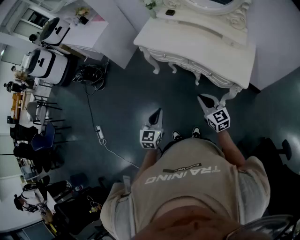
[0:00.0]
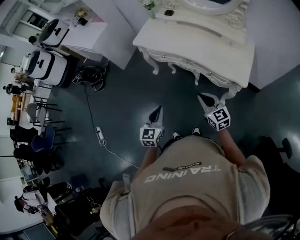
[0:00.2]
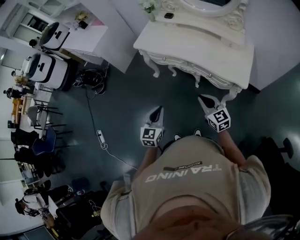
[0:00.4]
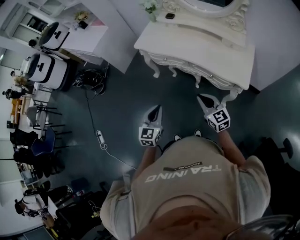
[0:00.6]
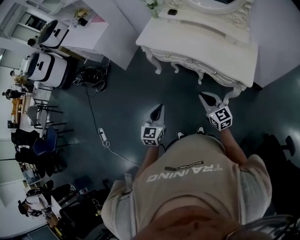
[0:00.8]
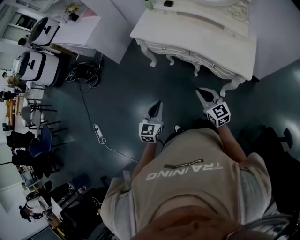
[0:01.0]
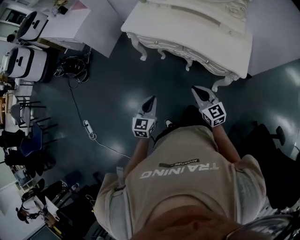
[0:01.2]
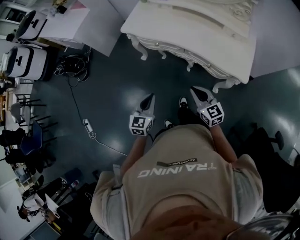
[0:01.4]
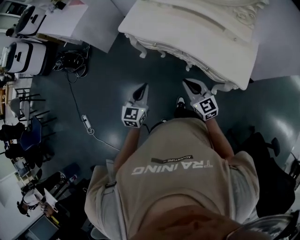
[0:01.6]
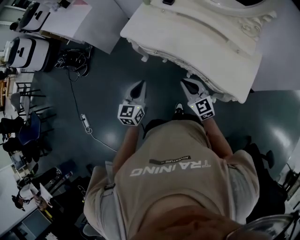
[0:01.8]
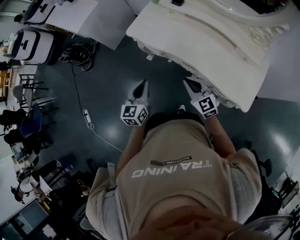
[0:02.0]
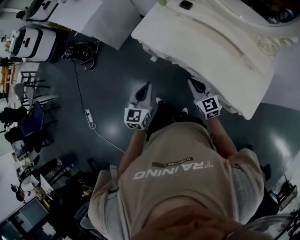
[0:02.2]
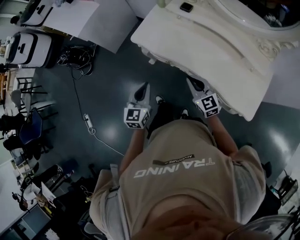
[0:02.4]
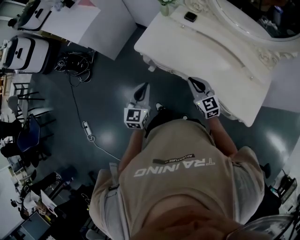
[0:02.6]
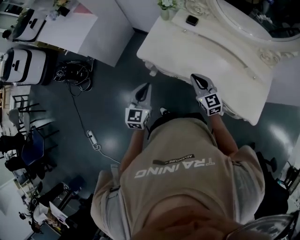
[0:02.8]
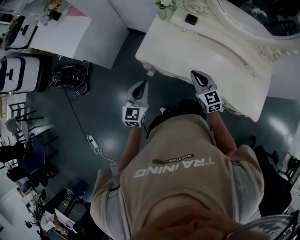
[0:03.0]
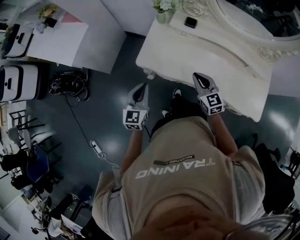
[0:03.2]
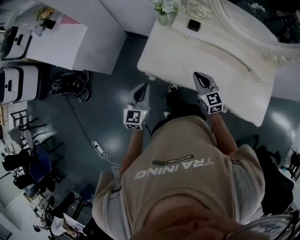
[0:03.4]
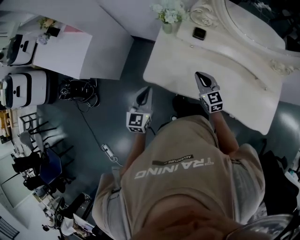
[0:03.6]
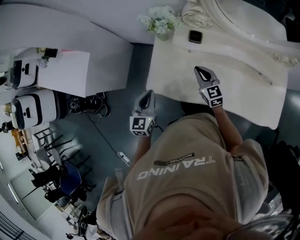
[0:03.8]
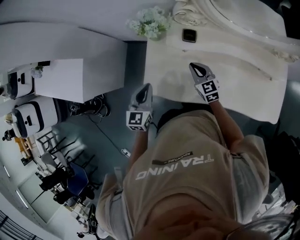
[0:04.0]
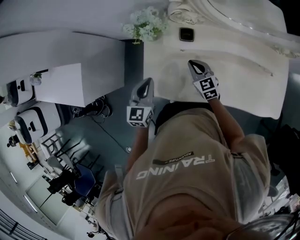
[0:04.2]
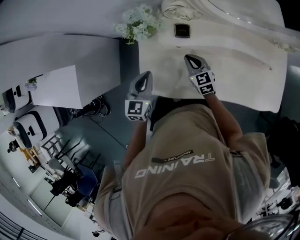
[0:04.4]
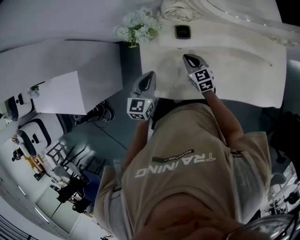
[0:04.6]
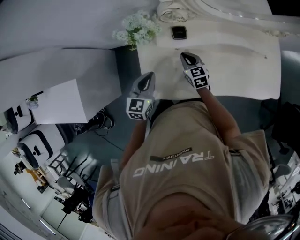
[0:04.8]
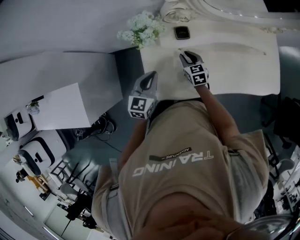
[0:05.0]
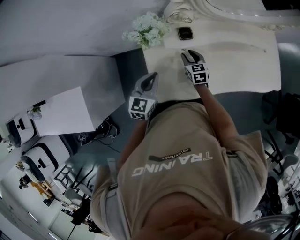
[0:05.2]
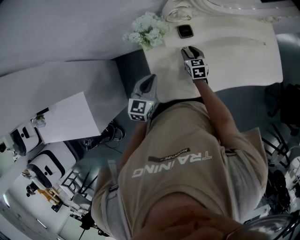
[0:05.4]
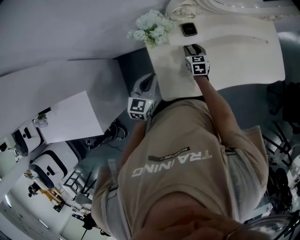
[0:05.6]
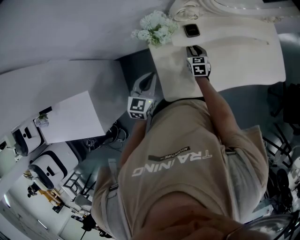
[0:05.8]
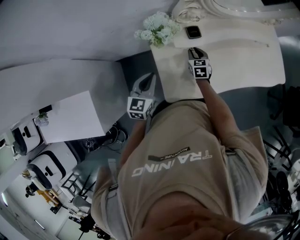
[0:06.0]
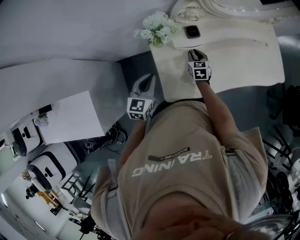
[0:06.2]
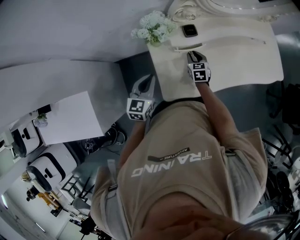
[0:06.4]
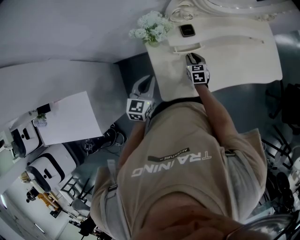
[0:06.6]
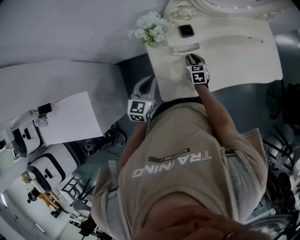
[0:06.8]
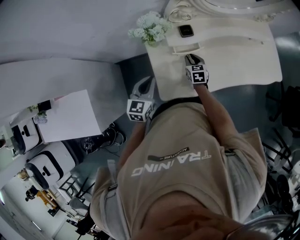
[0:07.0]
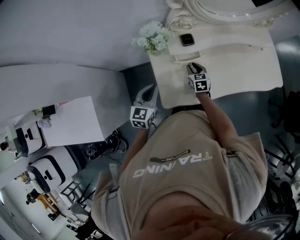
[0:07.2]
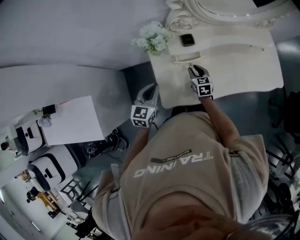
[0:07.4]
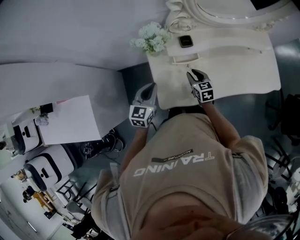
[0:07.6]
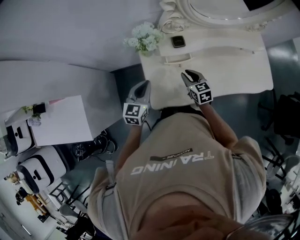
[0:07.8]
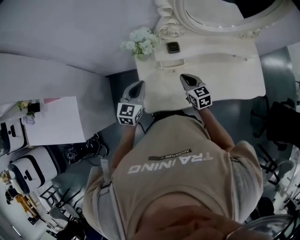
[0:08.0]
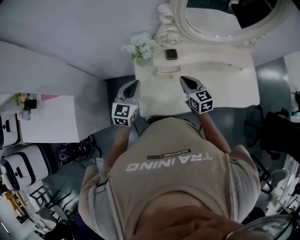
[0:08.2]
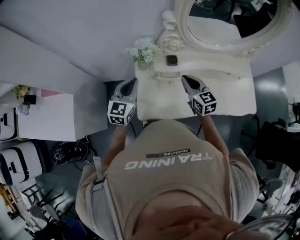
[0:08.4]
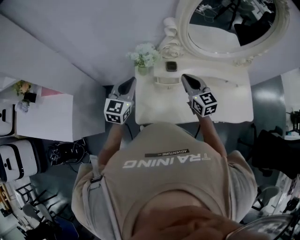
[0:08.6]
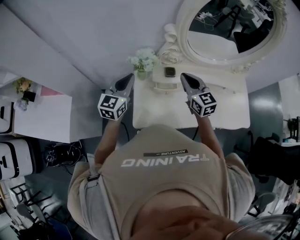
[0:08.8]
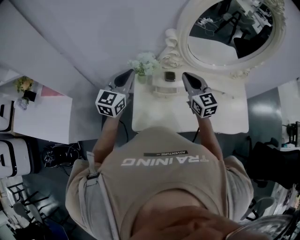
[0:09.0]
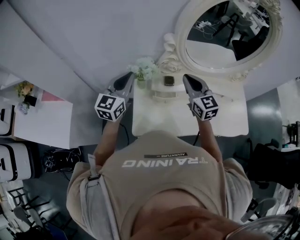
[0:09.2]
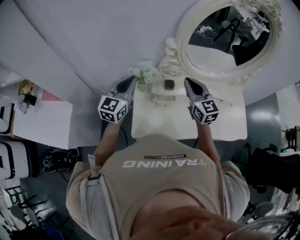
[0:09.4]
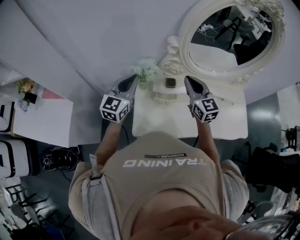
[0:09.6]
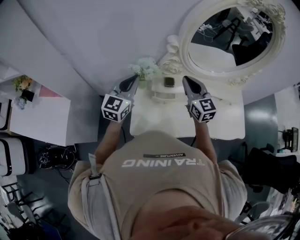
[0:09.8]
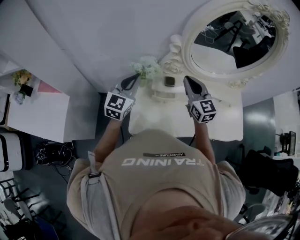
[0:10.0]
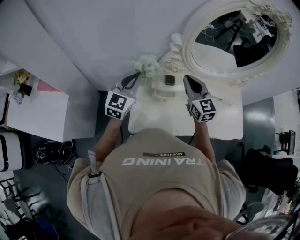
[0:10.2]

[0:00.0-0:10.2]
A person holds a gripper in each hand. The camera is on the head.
0:00.0 to 0:01.4: The two grippers go some 10 cm forward.
0:01.4 to 0:03.0: The two grippers travel together, forward, about 40 cm.
0:03.0 to 0:04.4: The left gripper shifts approximately 30 cm forward, and swivels approximately 20 degrees, while the right gripper heads forward and downward, covering about 30 cm, and rotates about 20 degrees.
0:04.4 to 0:05.8: The left gripper shifts by about 10 cm, and rotates some 20 degrees; the right gripper shifts by some 10 cm, changes its angle by approximately 40 degrees, and opens.
0:05.8 to 0:07.2: The right gripper moves backward, some 5 cm. Meanwhile the left gripper changes place by approximately 5 cm.
0:07.2 to 0:08.8: The right gripper shifts about 30 cm upward, swivels roughly 40 degrees, and closes up. Meanwhile the left gripper moves upward, some 15 cm.
0:08.8 to 0:10.2: There are only small adjustments of the grippers.

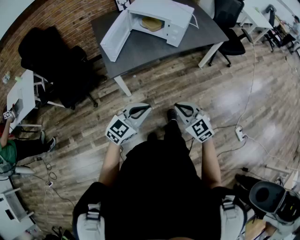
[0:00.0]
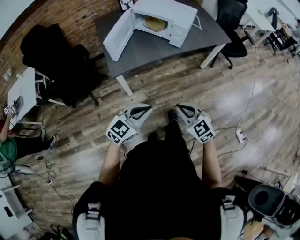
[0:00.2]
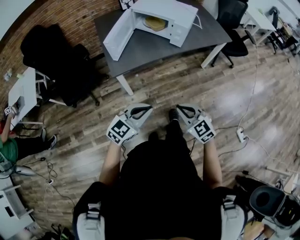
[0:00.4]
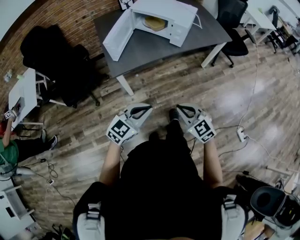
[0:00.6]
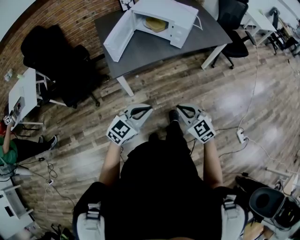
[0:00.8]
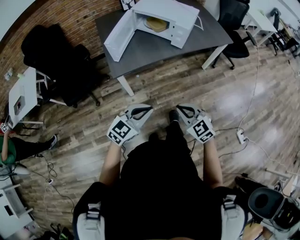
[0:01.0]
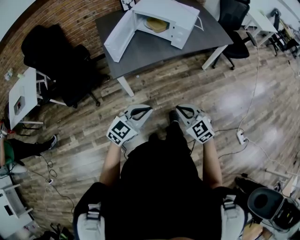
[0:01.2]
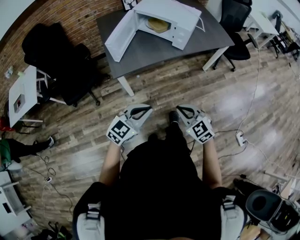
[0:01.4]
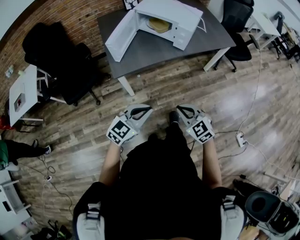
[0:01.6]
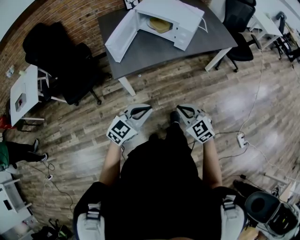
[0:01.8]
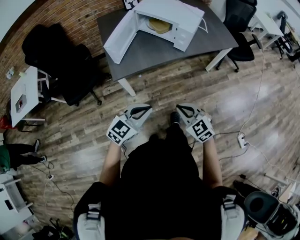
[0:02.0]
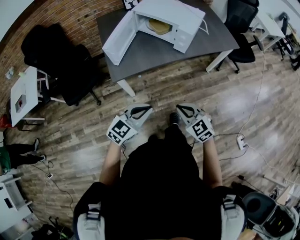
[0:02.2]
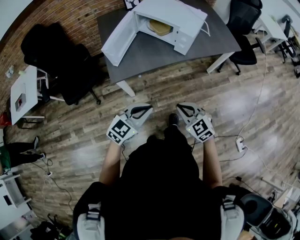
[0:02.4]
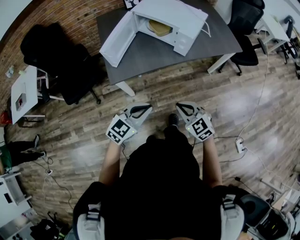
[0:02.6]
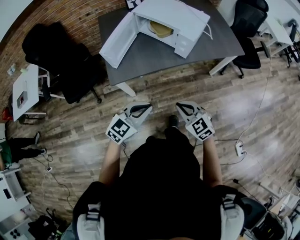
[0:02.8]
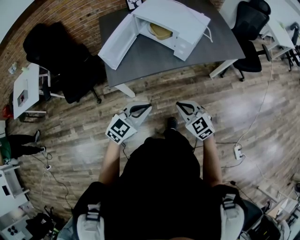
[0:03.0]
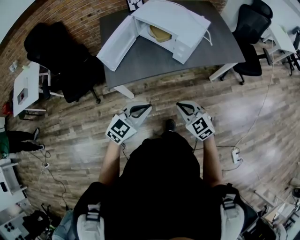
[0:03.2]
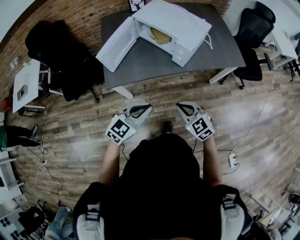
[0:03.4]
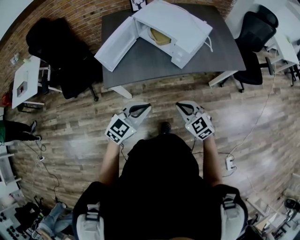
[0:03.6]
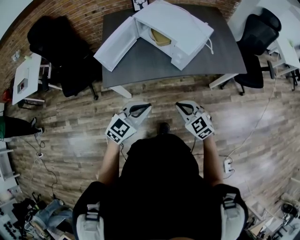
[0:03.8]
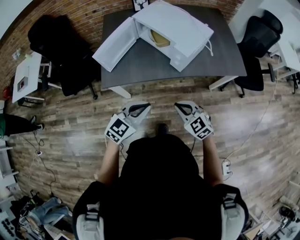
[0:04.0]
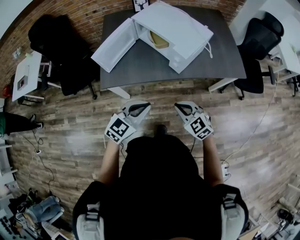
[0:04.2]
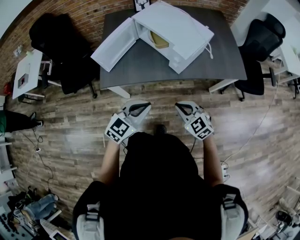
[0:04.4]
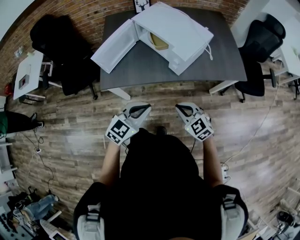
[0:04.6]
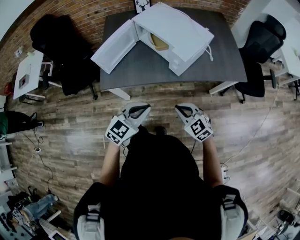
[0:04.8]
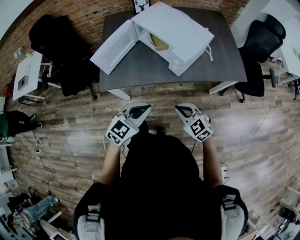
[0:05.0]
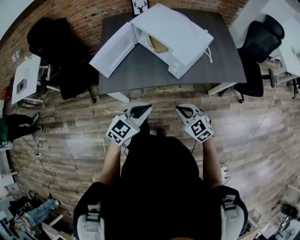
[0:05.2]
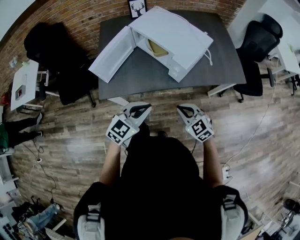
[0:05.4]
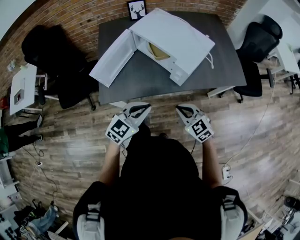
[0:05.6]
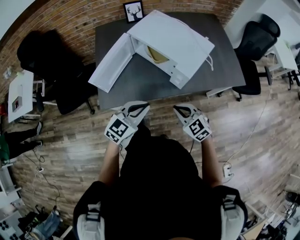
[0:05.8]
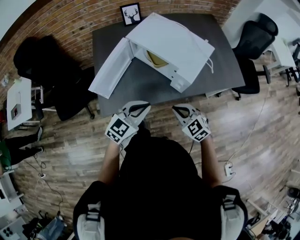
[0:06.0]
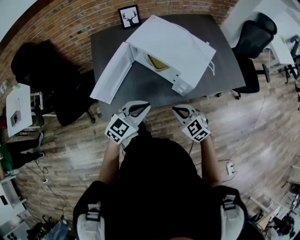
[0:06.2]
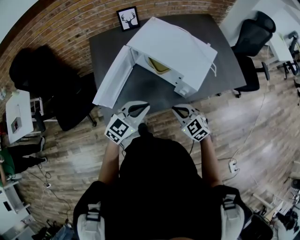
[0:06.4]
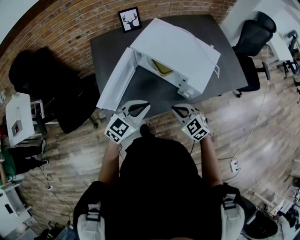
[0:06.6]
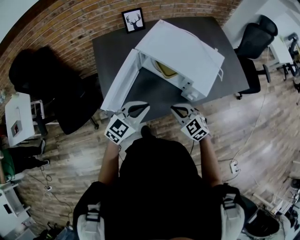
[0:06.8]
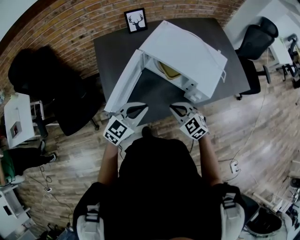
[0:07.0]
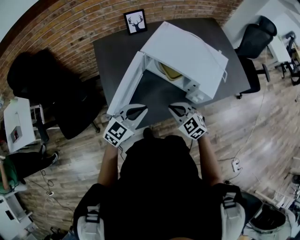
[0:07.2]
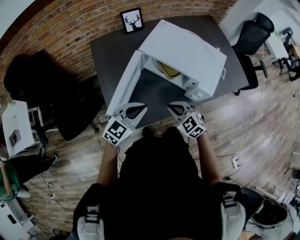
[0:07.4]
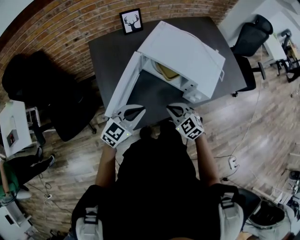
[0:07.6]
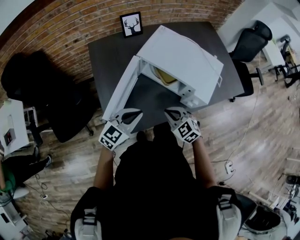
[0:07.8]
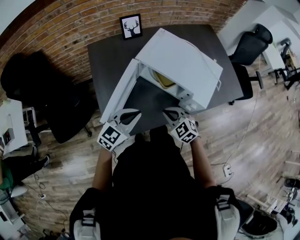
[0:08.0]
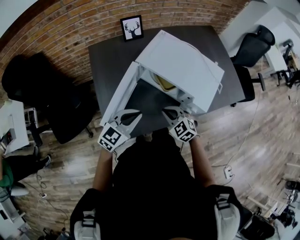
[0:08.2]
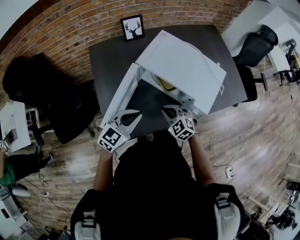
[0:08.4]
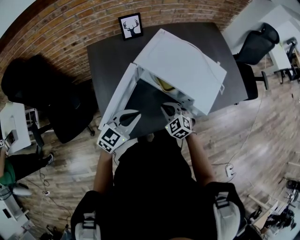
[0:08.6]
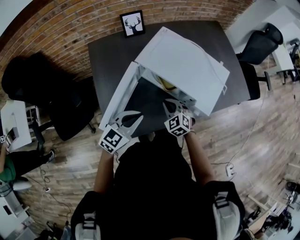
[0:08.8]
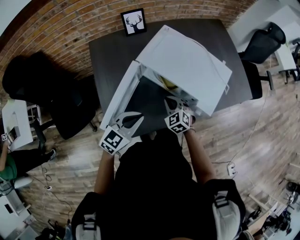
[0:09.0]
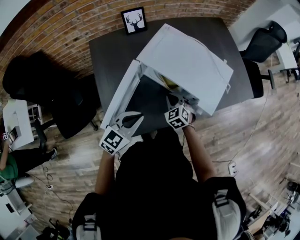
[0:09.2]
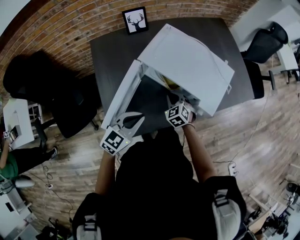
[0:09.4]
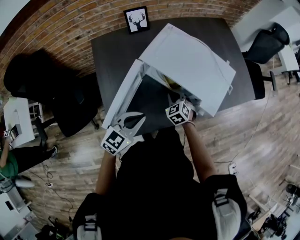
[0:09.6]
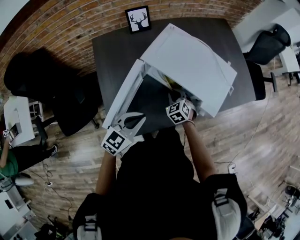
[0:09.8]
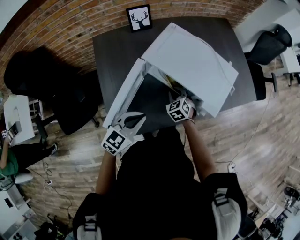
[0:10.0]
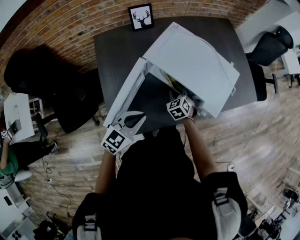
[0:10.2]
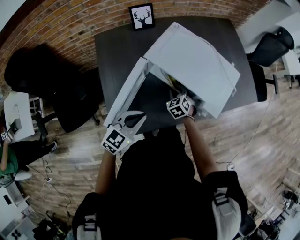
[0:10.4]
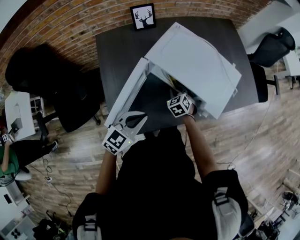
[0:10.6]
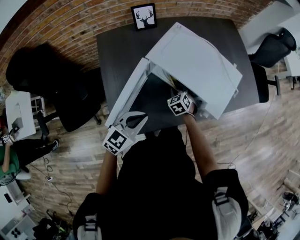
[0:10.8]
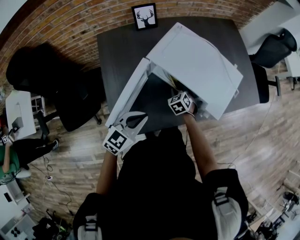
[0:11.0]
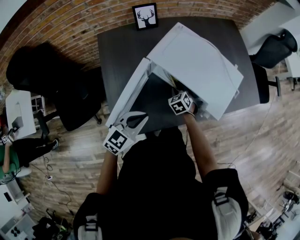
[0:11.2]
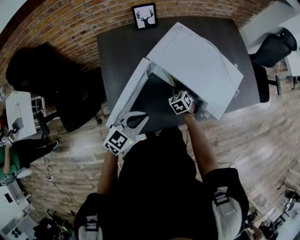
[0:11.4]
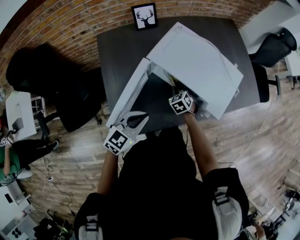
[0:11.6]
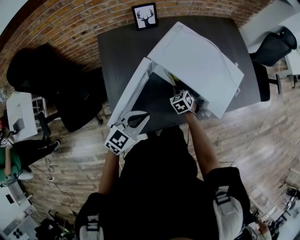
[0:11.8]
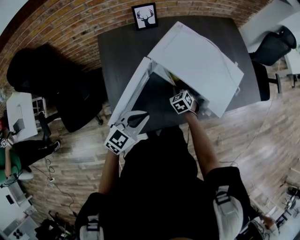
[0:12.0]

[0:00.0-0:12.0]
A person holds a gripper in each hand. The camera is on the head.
0:00.0 to 0:01.6: The grippers make only small movements.
0:01.6 to 0:03.0: The right gripper goes about 15 cm forward. Meanwhile the left gripper heads forward and to the right, covering roughly 15 cm.
0:03.0 to 0:04.4: The grippers both shift to the right and forward by approximately 10 cm.
0:04.4 to 0:06.0: The right gripper moves forward and to the left, about 15 cm, while the left gripper travels forward by some 15 cm.
0:06.0 to 0:07.6: Both grippers travel together to the left and forward, approximately 15 cm.
0:07.6 to 0:09.0: The left gripper moves about 5 cm. Meanwhile the right gripper goes approximately 15 cm forward and downward.
0:09.0 to 0:10.4: The right gripper travels forward and downward by approximately 10 cm.
0:10.4 to 0:12.0: The grippers stay close to where they were, moving slightly.

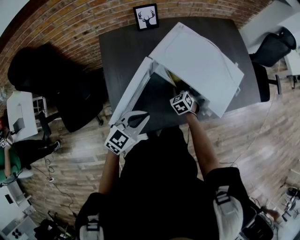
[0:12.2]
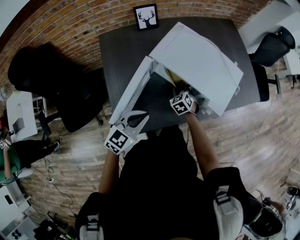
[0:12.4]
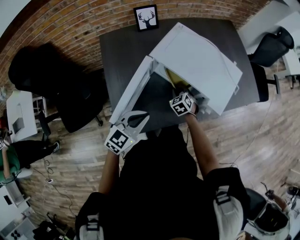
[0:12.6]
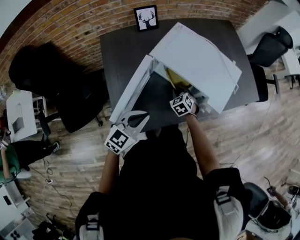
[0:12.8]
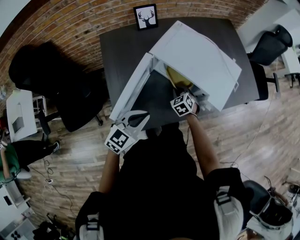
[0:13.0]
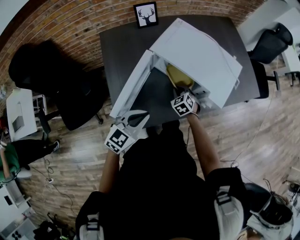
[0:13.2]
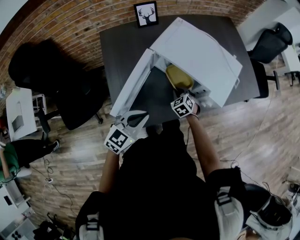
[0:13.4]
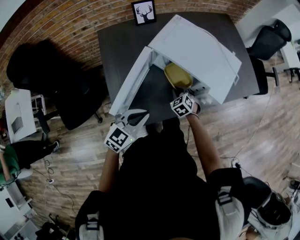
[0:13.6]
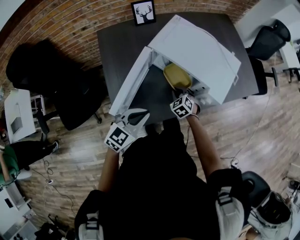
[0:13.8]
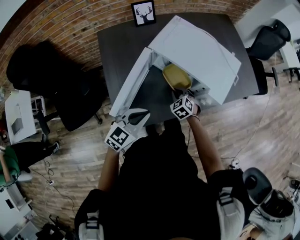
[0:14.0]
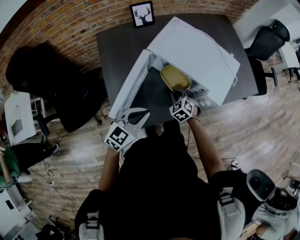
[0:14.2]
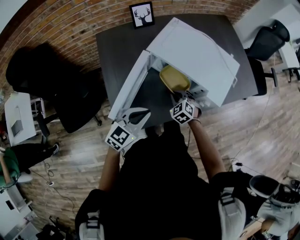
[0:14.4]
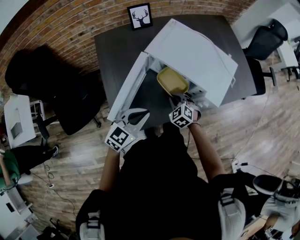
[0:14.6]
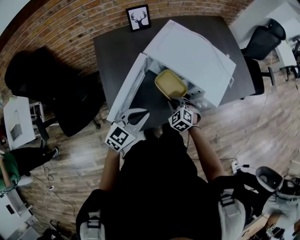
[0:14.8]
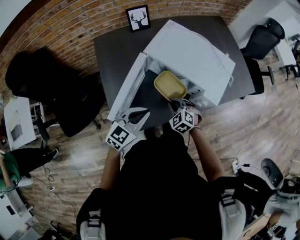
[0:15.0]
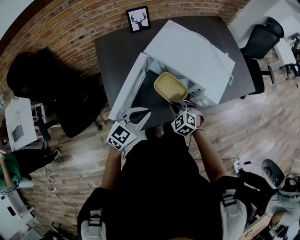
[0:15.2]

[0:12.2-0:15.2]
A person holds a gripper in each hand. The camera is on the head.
0:12.2 to 0:13.8: The right gripper goes about 5 cm backward.
0:13.8 to 0:15.2: The right gripper heads upward and backward, covering approximately 10 cm.
